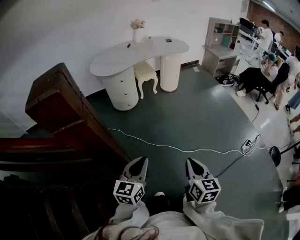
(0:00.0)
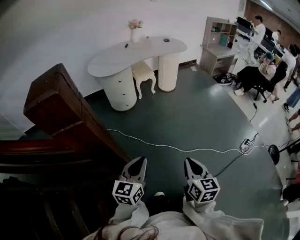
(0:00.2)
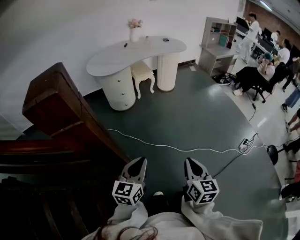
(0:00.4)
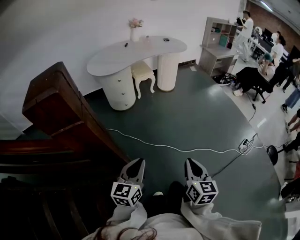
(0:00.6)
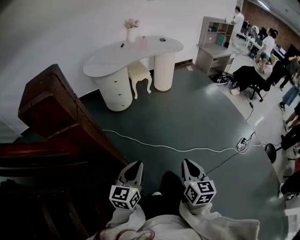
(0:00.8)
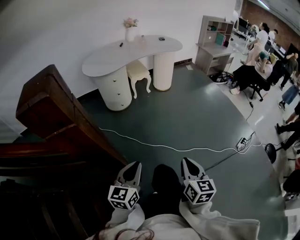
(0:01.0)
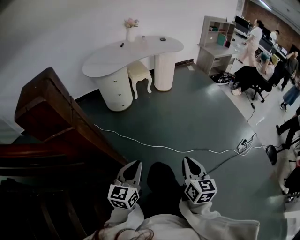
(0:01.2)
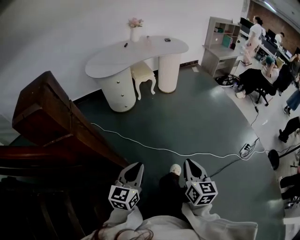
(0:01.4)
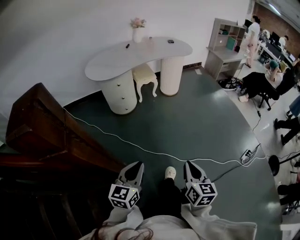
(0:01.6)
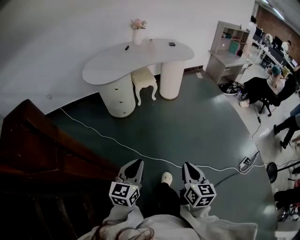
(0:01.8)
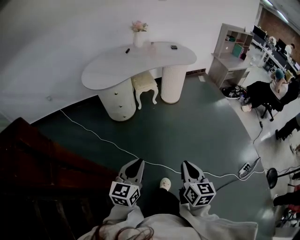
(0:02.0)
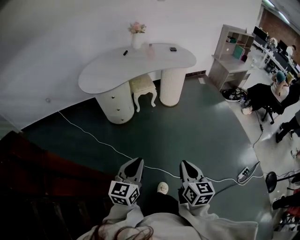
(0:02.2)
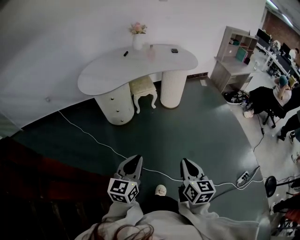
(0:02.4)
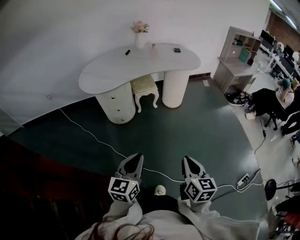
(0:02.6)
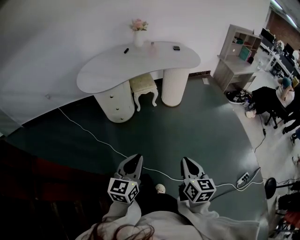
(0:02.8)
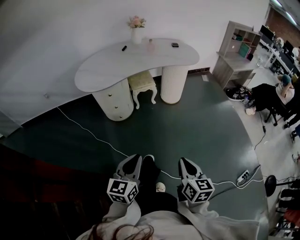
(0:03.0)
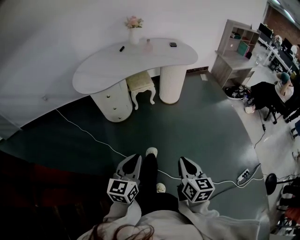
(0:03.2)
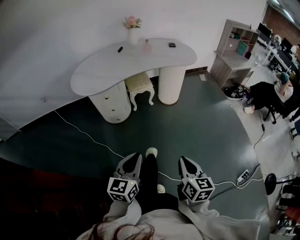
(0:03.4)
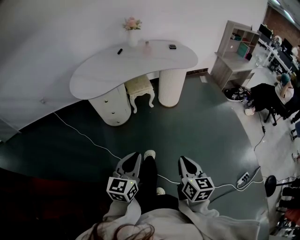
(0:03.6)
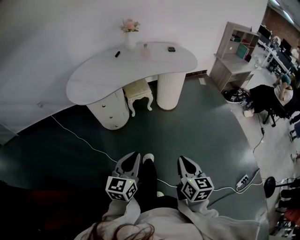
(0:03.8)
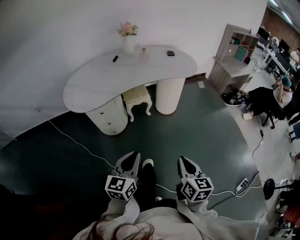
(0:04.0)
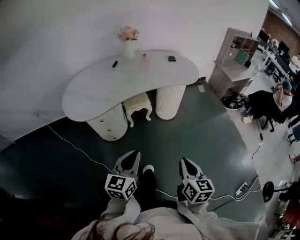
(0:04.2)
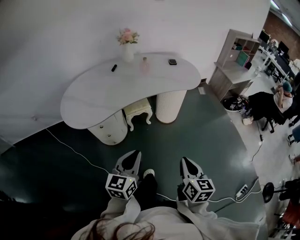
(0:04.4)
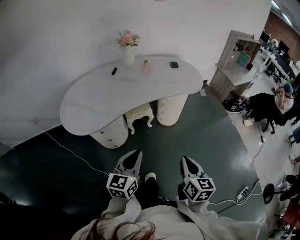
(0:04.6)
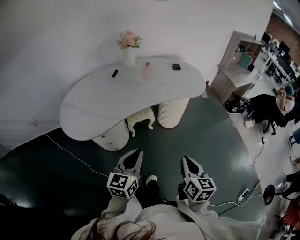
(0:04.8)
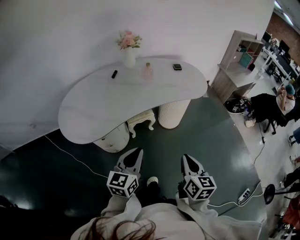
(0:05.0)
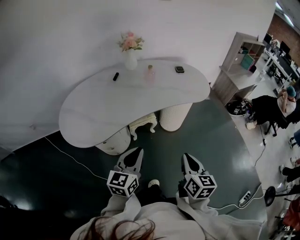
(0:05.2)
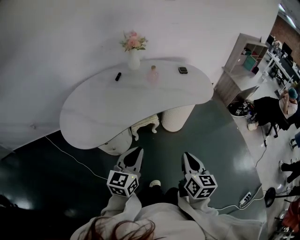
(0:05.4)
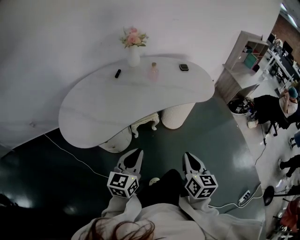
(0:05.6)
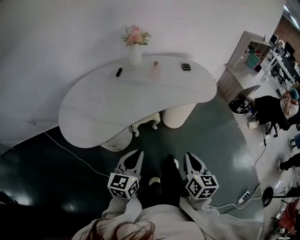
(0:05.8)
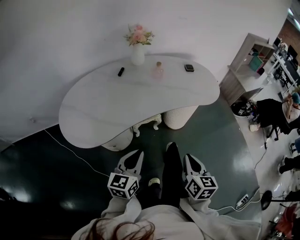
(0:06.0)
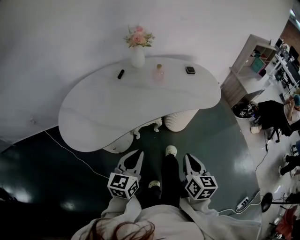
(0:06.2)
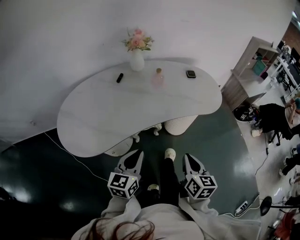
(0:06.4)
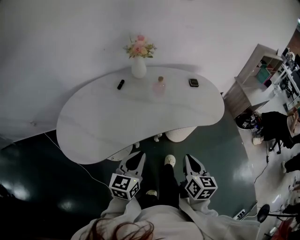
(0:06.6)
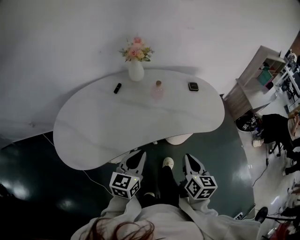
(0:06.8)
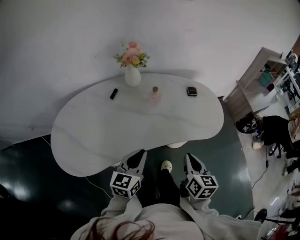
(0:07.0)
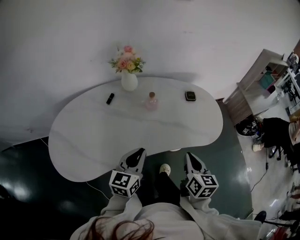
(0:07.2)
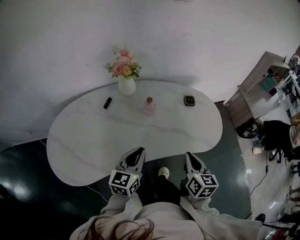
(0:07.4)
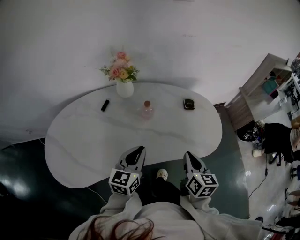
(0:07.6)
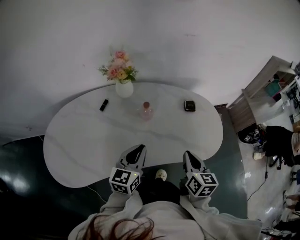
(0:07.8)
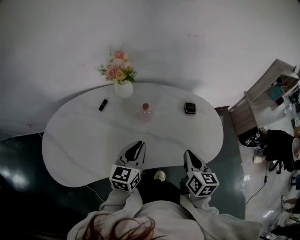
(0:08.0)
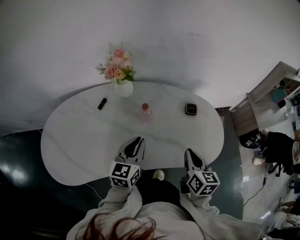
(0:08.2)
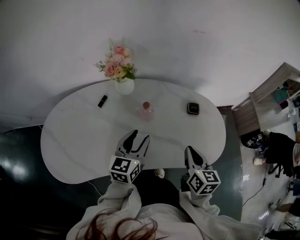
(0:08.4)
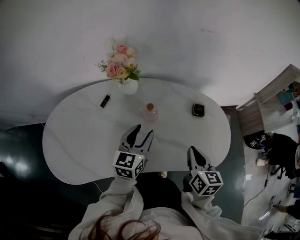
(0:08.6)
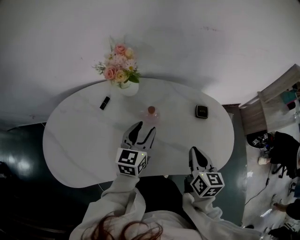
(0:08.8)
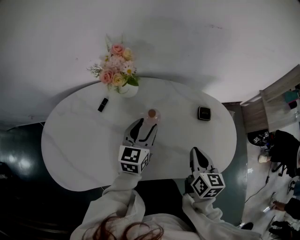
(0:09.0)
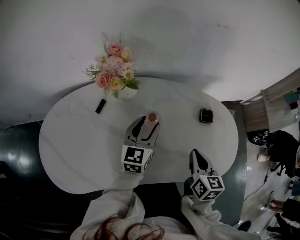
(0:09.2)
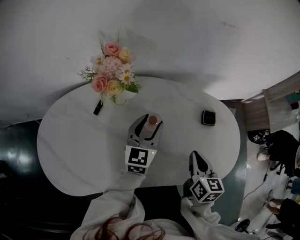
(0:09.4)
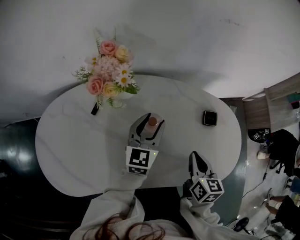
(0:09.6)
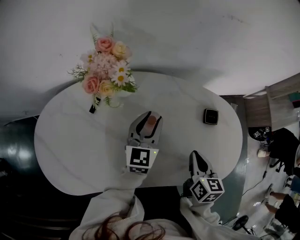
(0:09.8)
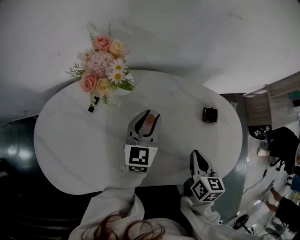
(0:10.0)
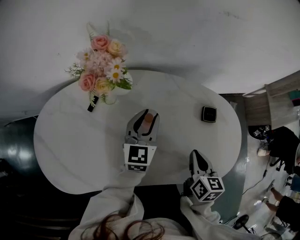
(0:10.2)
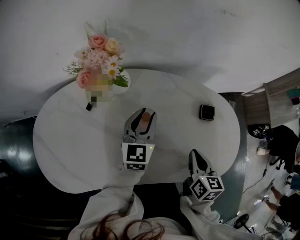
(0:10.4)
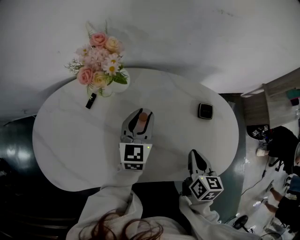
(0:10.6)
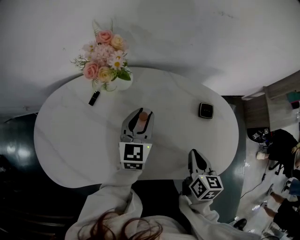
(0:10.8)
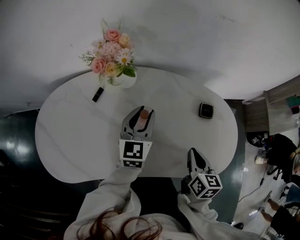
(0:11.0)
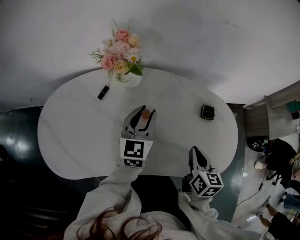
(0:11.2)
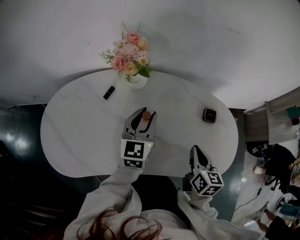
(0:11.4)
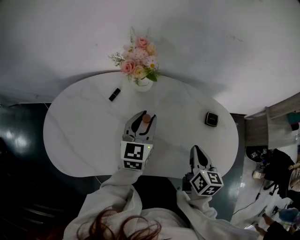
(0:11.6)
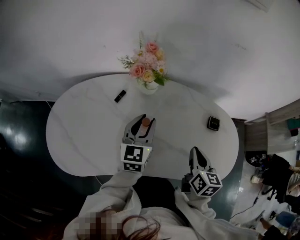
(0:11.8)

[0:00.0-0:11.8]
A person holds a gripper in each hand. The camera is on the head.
0:00.0 to 0:01.4: The right gripper travels forward by some 5 cm.
0:01.4 to 0:03.0: Both grippers travel together forward, approximately 30 cm.
0:03.0 to 0:04.4: The two grippers go roughly 25 cm forward.
0:04.4 to 0:06.0: The two grippers go roughly 20 cm forward and to the left.
0:06.0 to 0:07.4: Both grippers travel together forward, approximately 30 cm.
0:07.4 to 0:08.8: Both grippers move forward, about 15 cm. The left gripper opens its fingers.
0:08.8 to 0:10.4: The right gripper heads downward, covering about 5 cm, while the left gripper shifts some 10 cm forward.
0:10.4 to 0:11.8: The left gripper heads to the left, upward and backward, covering roughly 10 cm; the right gripper shifts about 5 cm upward.

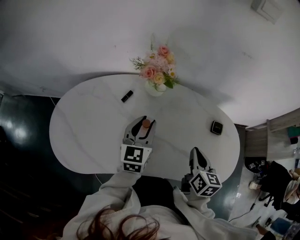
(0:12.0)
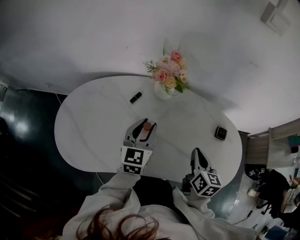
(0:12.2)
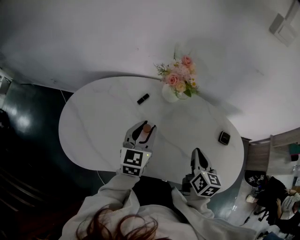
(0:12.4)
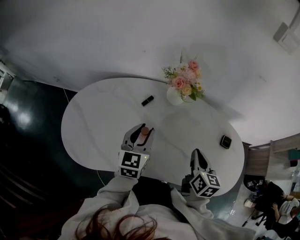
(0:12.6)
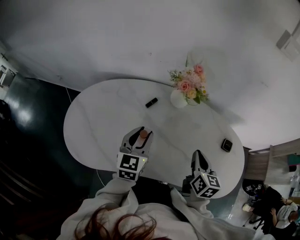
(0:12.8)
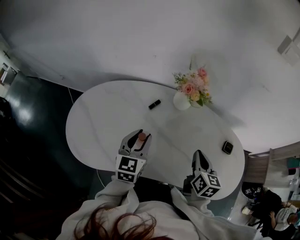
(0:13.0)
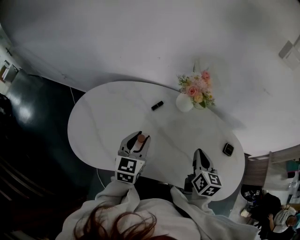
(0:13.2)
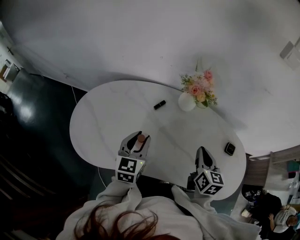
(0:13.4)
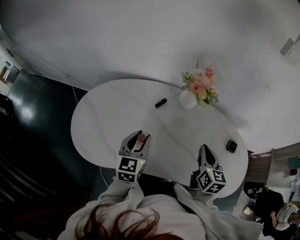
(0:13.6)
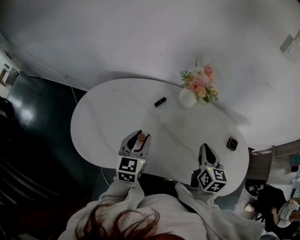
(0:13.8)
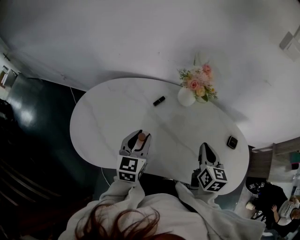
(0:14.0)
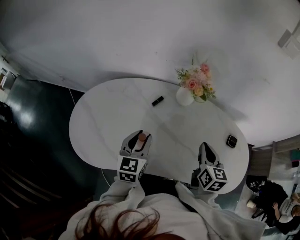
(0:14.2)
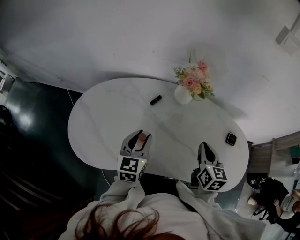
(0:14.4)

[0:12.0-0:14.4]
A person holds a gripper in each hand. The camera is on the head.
0:12.0 to 0:13.2: The left gripper is displaced to the left and backward by about 15 cm, while the right gripper is displaced to the left by about 10 cm.
0:13.2 to 0:14.4: The grippers make only small movements.

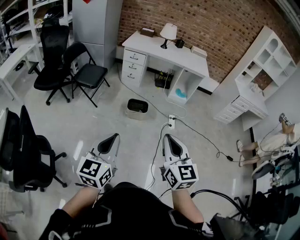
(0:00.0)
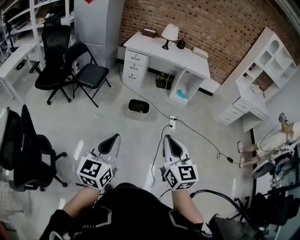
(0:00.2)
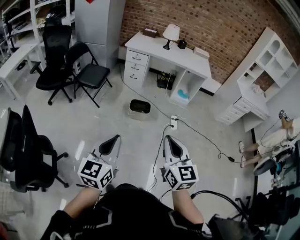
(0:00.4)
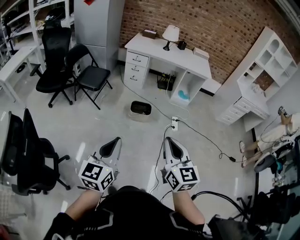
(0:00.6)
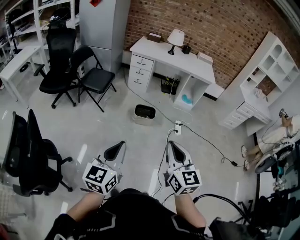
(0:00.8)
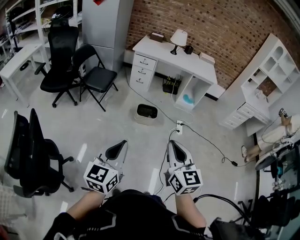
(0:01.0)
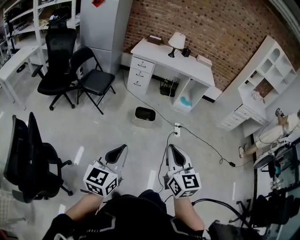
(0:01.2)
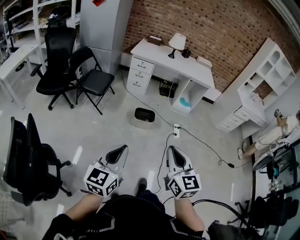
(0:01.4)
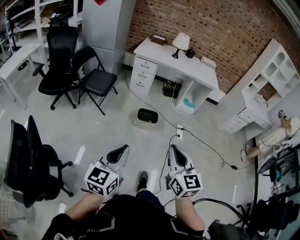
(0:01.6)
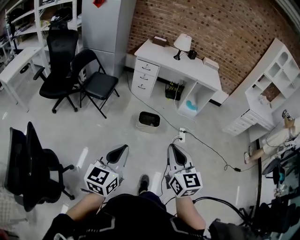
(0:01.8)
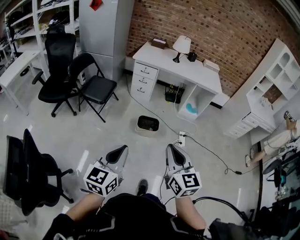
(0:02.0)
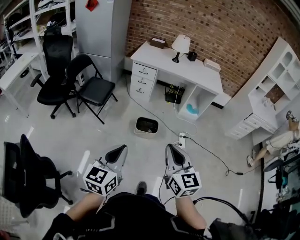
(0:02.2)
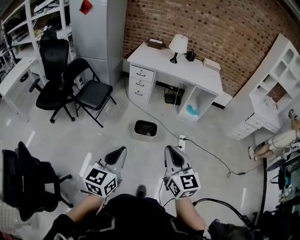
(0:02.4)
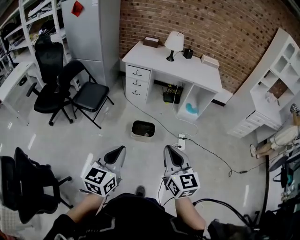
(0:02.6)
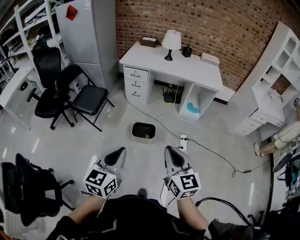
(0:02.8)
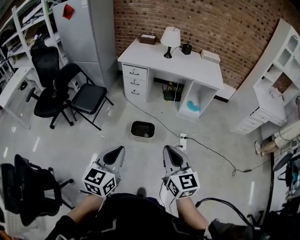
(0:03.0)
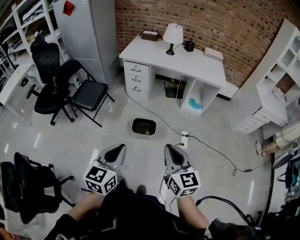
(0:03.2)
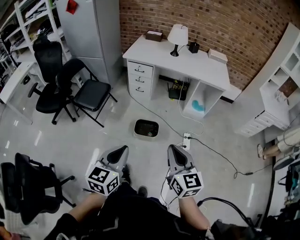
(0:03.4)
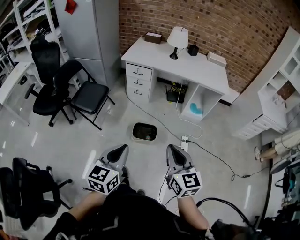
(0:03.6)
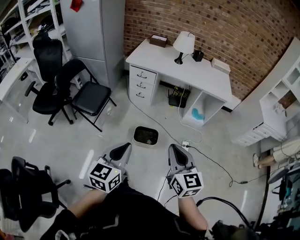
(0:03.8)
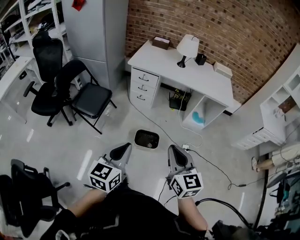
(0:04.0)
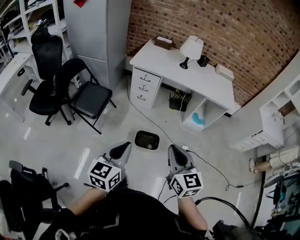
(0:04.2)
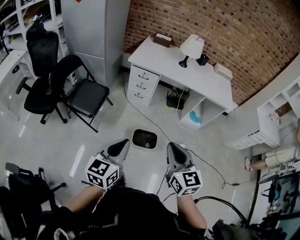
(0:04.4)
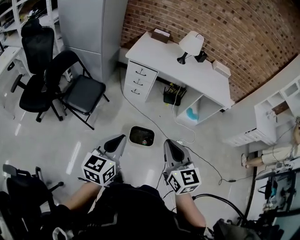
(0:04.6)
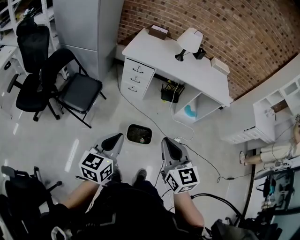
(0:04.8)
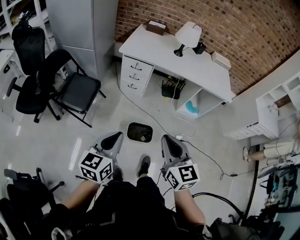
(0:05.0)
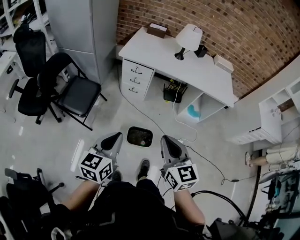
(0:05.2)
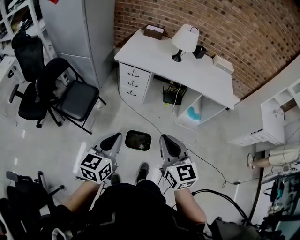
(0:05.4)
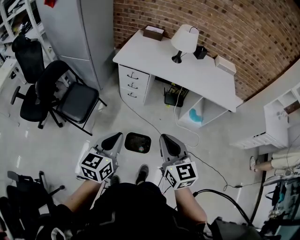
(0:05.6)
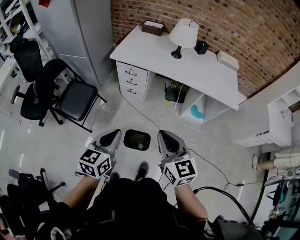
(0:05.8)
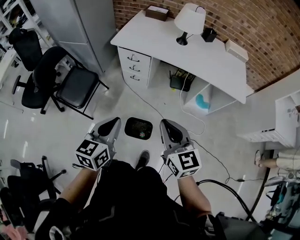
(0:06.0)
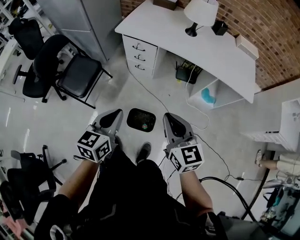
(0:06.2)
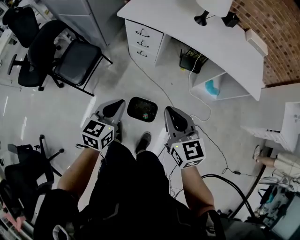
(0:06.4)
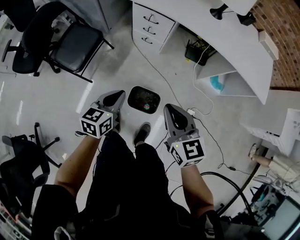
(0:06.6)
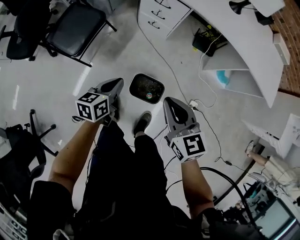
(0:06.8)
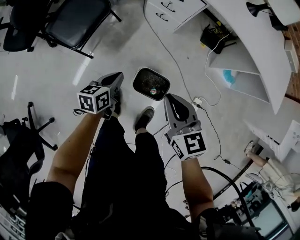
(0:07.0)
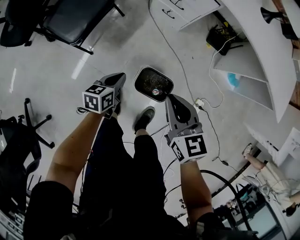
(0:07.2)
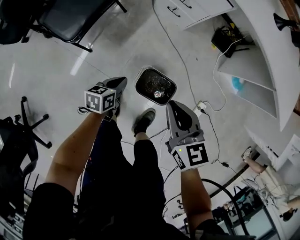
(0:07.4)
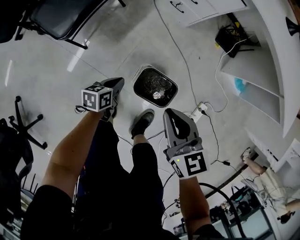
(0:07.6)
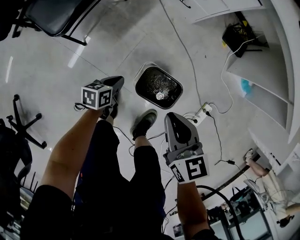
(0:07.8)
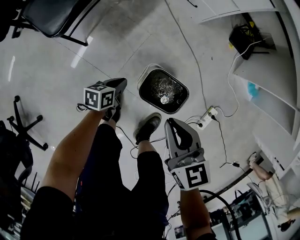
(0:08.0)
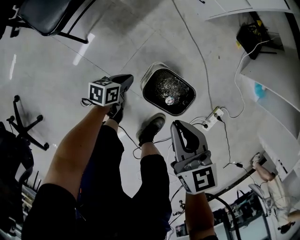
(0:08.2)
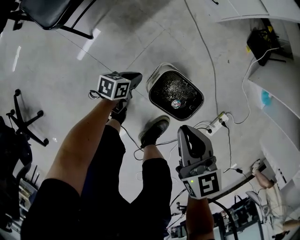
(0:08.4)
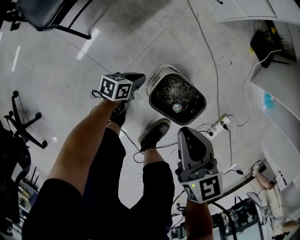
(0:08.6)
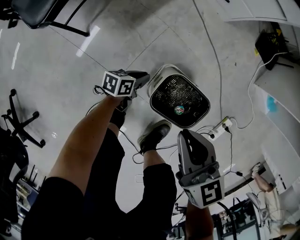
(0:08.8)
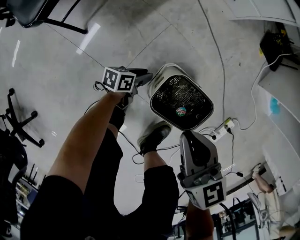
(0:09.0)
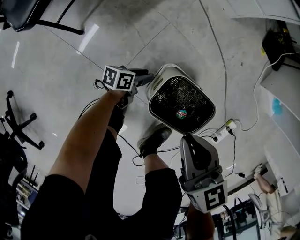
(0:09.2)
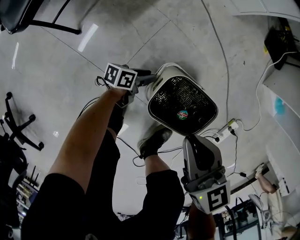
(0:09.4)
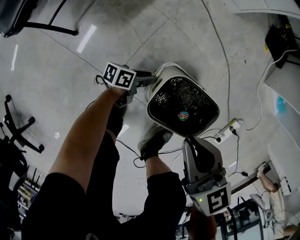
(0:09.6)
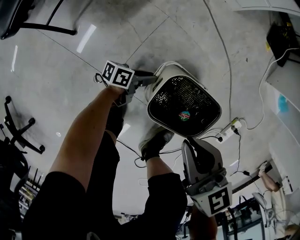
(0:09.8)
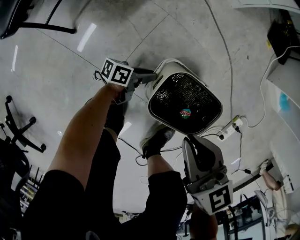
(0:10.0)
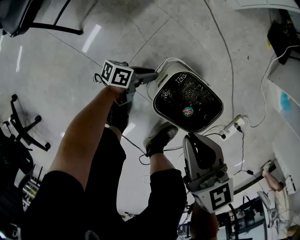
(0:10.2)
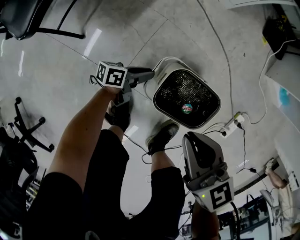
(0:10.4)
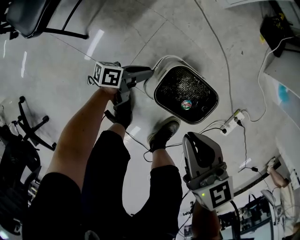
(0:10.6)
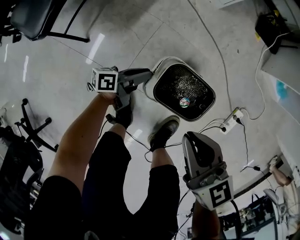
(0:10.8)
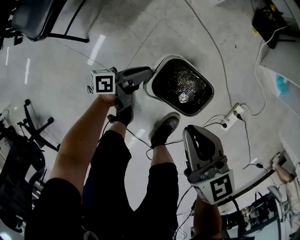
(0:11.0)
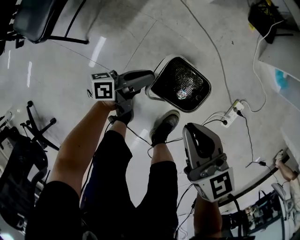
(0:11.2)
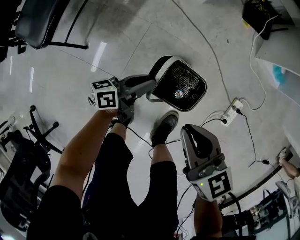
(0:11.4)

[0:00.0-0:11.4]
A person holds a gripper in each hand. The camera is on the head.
0:00.0 to 0:01.4: The grippers both shift to the left by approximately 10 cm.
0:01.4 to 0:02.8: The grippers both shift forward and to the right by approximately 30 cm.
0:02.8 to 0:04.2: The grippers both shift forward and to the left by about 20 cm.
0:04.2 to 0:05.6: The two grippers go approximately 20 cm forward.
0:05.6 to 0:07.2: The left gripper goes some 50 cm downward, and changes its angle by some 40 degrees; the right gripper shifts roughly 35 cm downward and forward, and swivels some 30 degrees.
0:07.2 to 0:08.6: The two grippers go approximately 30 cm downward.
0:08.6 to 0:10.0: The left gripper heads downward and to the right, covering approximately 10 cm, and swivels about 20 degrees, while the right gripper moves downward, roughly 10 cm.
0:10.0 to 0:11.4: The left gripper shifts approximately 25 cm upward; the right gripper heads upward and to the right, covering some 15 cm.
